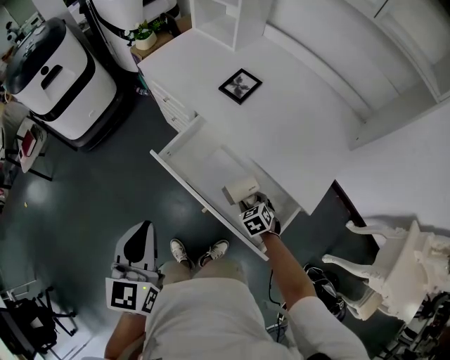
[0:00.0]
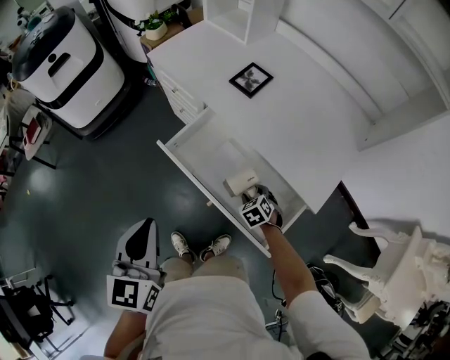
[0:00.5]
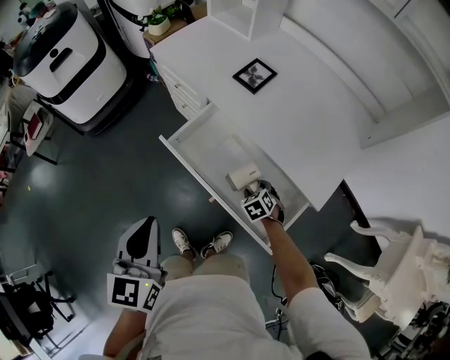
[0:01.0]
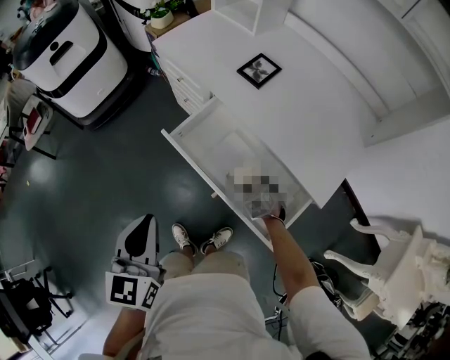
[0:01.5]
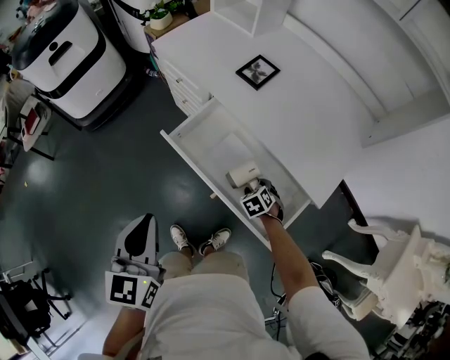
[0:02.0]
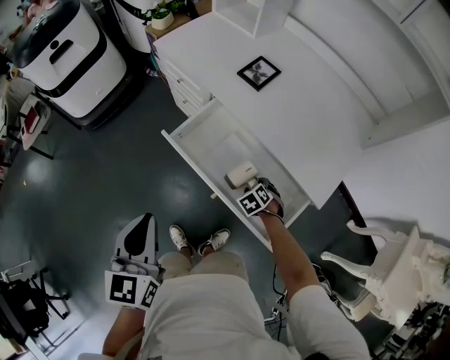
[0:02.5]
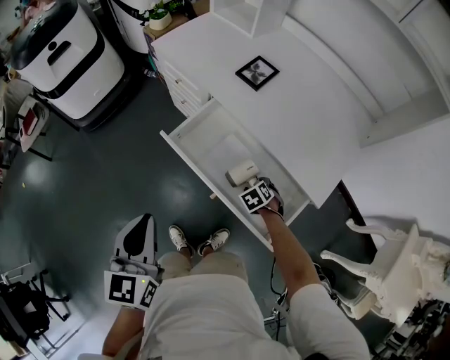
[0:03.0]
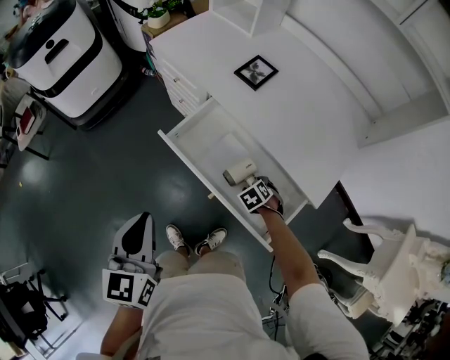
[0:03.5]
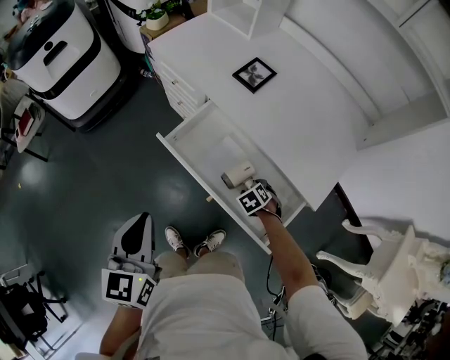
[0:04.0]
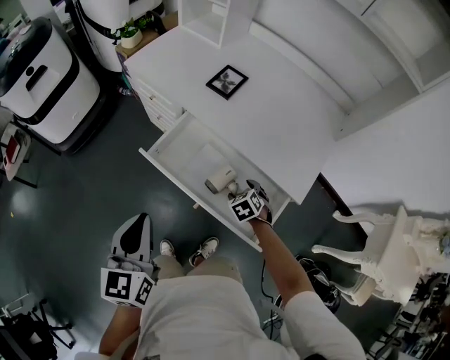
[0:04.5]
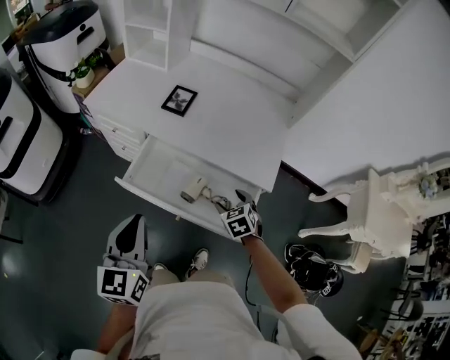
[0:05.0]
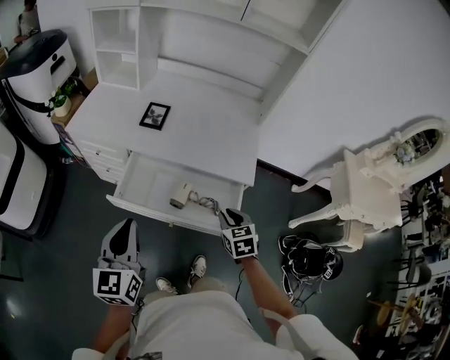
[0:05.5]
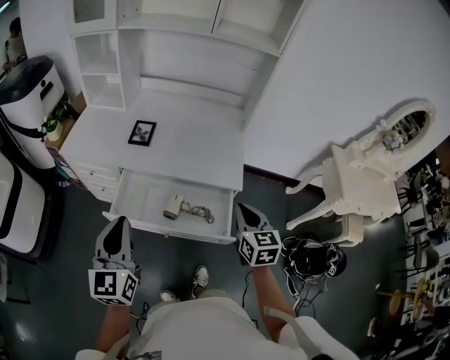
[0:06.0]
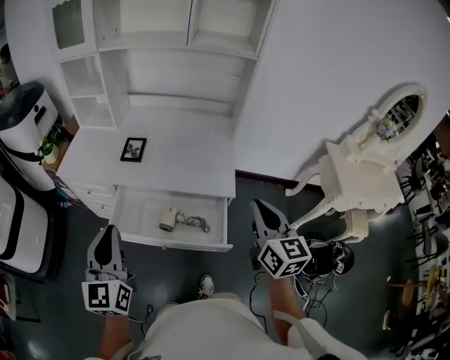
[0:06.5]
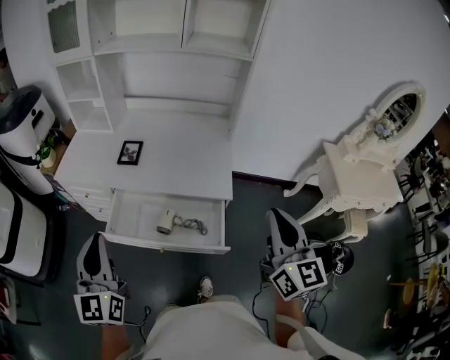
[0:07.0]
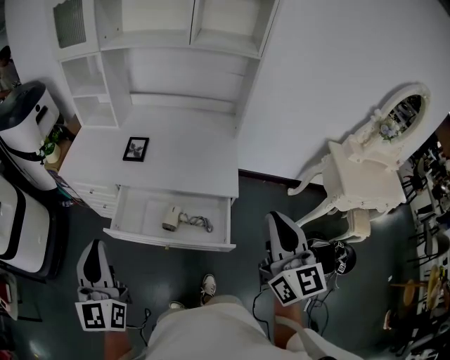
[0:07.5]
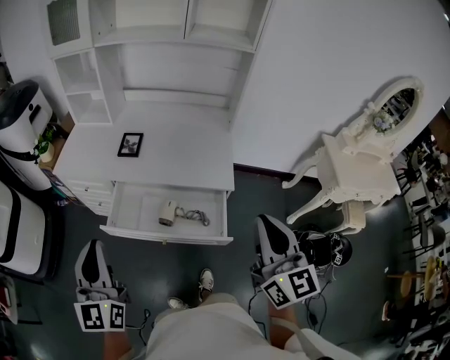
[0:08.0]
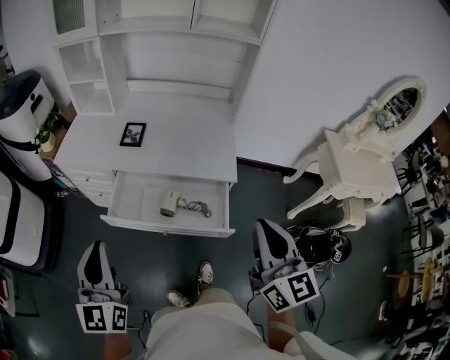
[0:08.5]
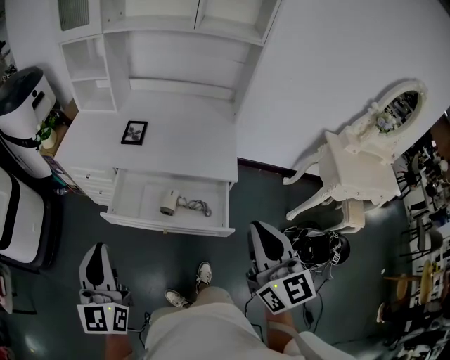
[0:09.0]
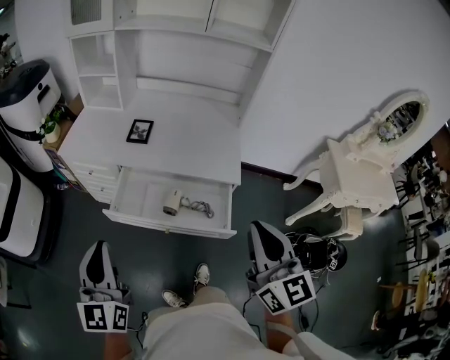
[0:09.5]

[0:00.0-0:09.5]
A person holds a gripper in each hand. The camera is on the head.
0:00.0 to 0:04.0: The grippers move only a little.
0:04.0 to 0:05.5: The left gripper moves roughly 5 cm, and turns by roughly 30 degrees. Meanwhile the right gripper travels upward by about 25 cm, angles its fingers upward, by about 30 degrees, and closes its fingers.
0:05.5 to 0:07.5: The left gripper travels upward by some 10 cm. Meanwhile the right gripper travels upward by approximately 30 cm, and tips its fingers upward by approximately 50 degrees.
0:07.5 to 0:09.5: The left gripper ends up about 5 cm from where it was. Meanwhile the right gripper moves to the left, some 10 cm.

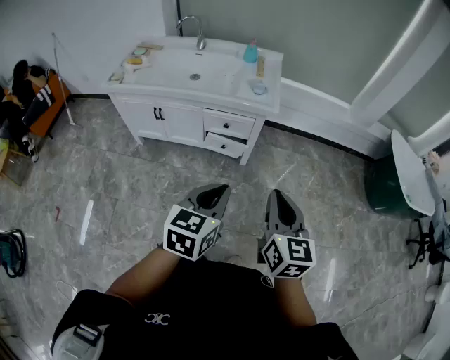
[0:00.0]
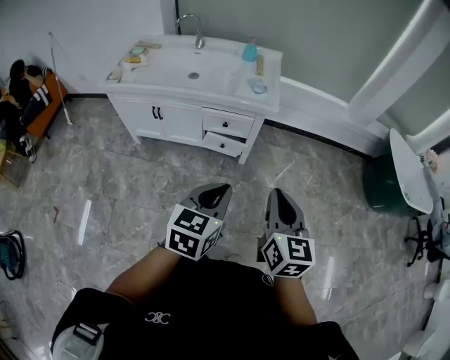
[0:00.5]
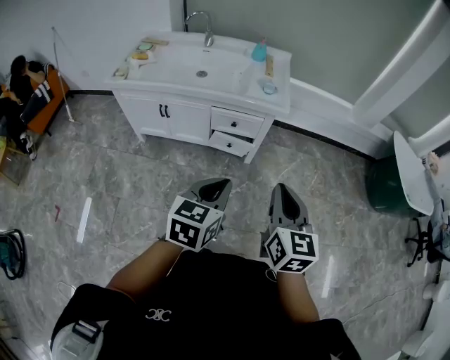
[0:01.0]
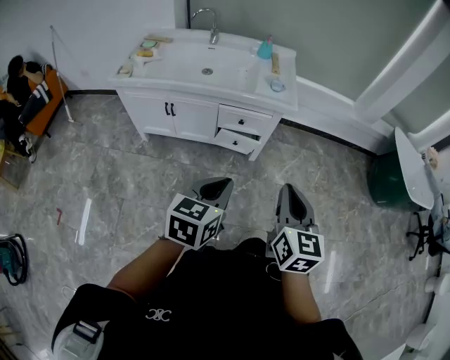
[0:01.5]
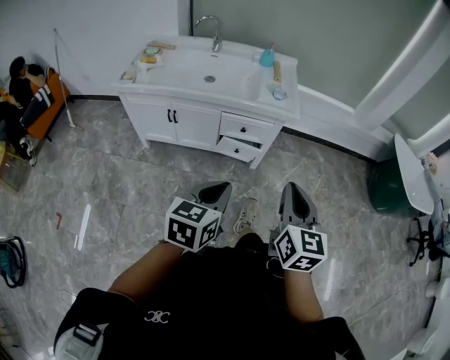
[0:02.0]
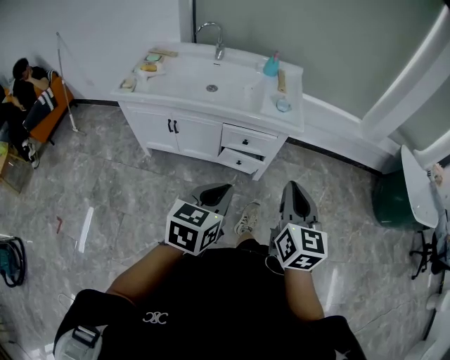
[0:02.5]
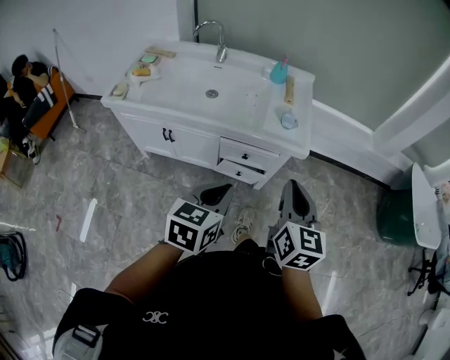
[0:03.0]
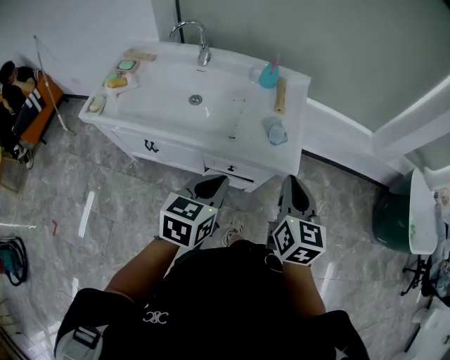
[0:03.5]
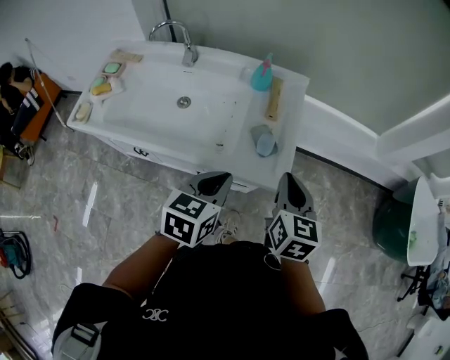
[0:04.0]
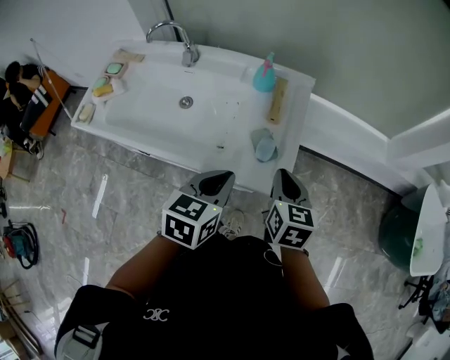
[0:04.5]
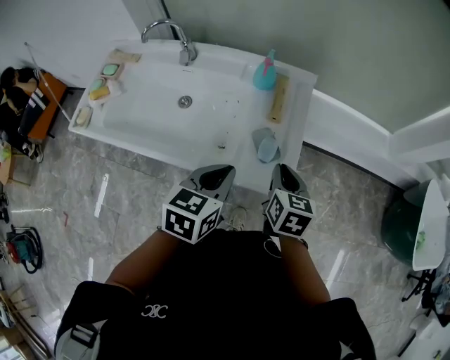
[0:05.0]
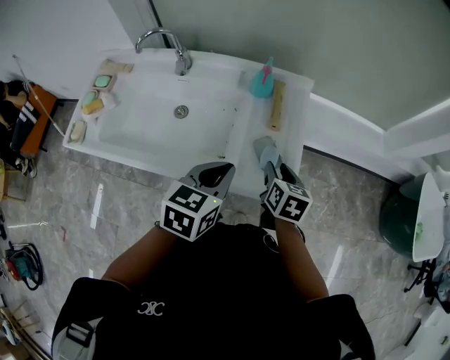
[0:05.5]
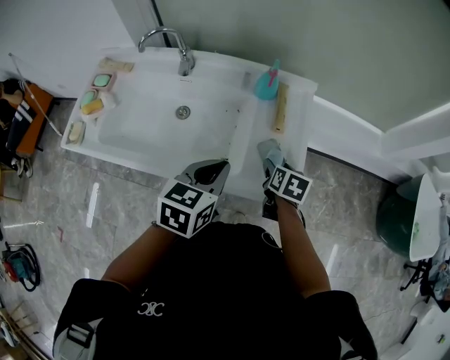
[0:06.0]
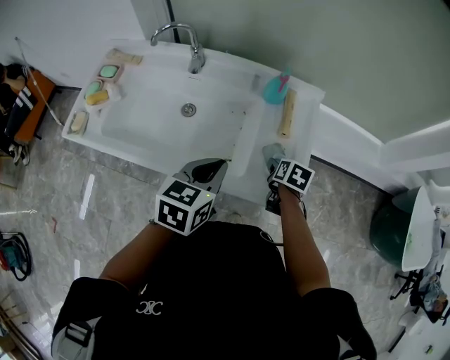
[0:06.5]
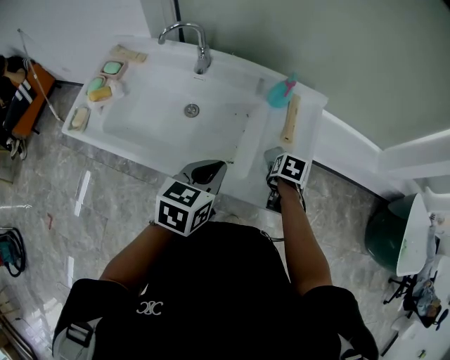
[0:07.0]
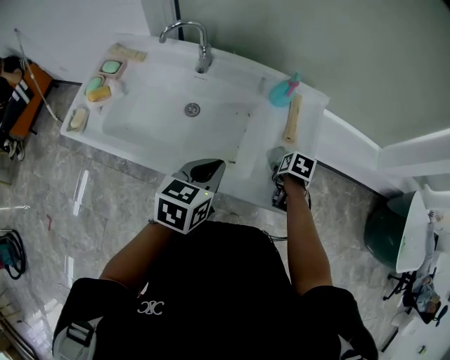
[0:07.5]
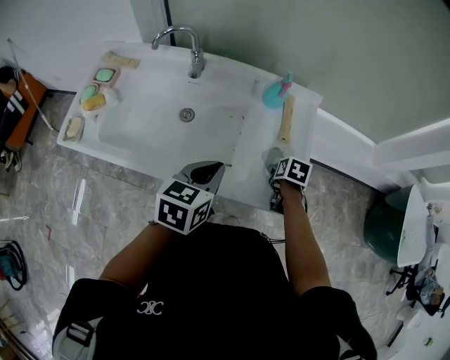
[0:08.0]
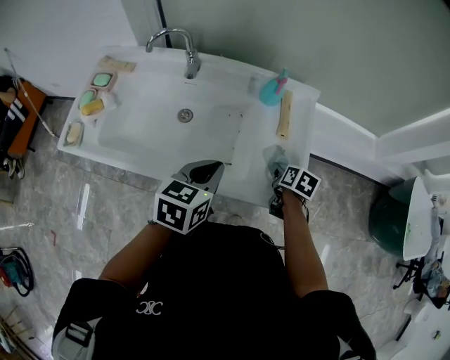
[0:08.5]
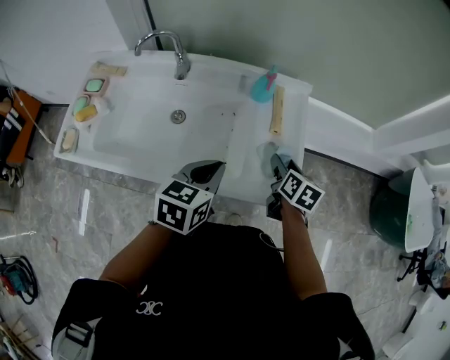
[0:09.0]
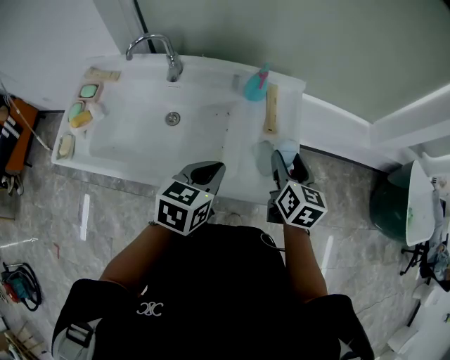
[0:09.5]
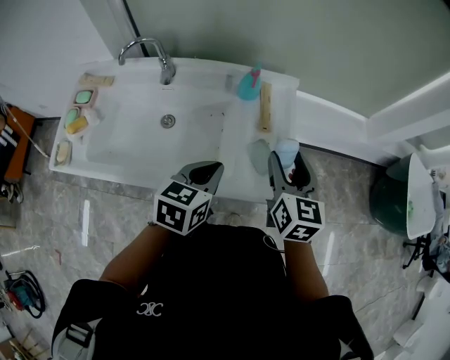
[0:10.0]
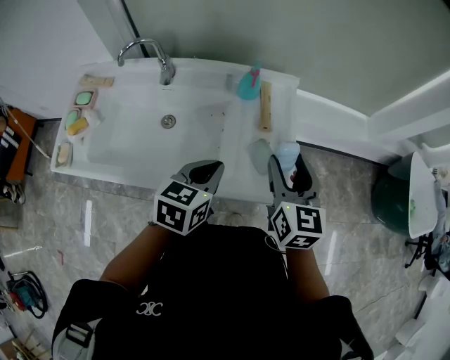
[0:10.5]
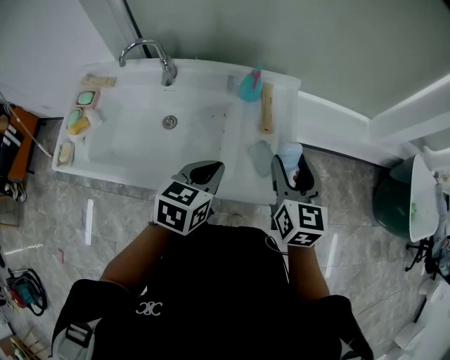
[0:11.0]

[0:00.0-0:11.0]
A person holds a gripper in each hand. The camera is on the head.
0:00.0 to 0:02.0: The grippers both shift to the left by roughly 10 cm.
0:02.0 to 0:03.5: Both grippers travel together forward, roughly 35 cm.
0:03.5 to 0:05.5: The left gripper moves forward, roughly 20 cm, while the right gripper shifts roughly 25 cm forward and downward, rotates some 30 degrees, and opens up.
0:05.5 to 0:07.5: The left gripper shifts roughly 10 cm to the left, while the right gripper shifts about 10 cm downward, tilts its fingers about 30 degrees downward, and opens its fingers.
0:07.5 to 0:09.0: The right gripper moves upward, approximately 10 cm, and points its fingers about 30 degrees further upward.
0:09.0 to 0:11.0: The right gripper goes roughly 15 cm upward, and rotates approximately 30 degrees.

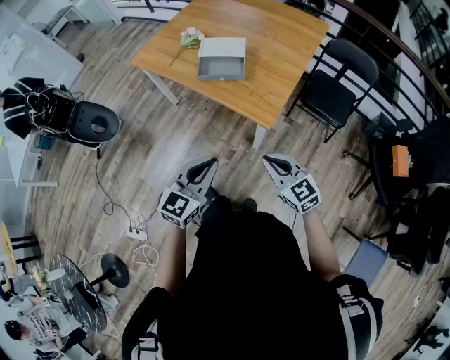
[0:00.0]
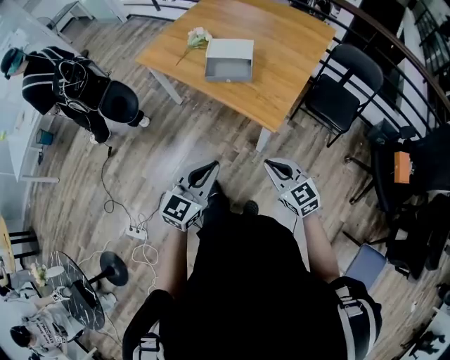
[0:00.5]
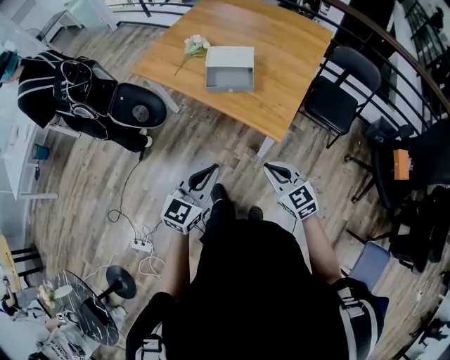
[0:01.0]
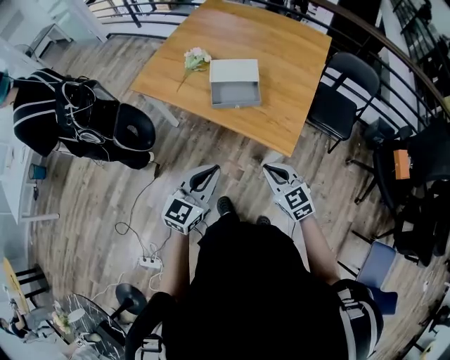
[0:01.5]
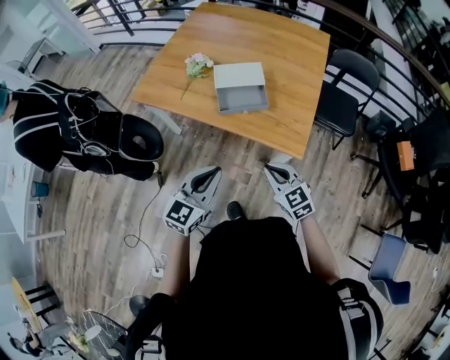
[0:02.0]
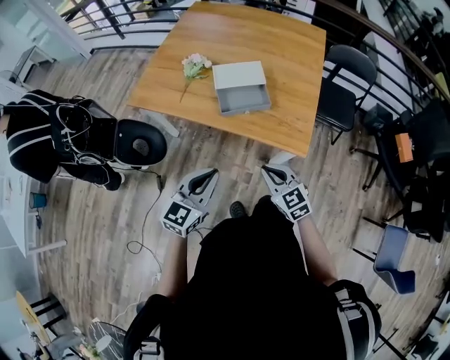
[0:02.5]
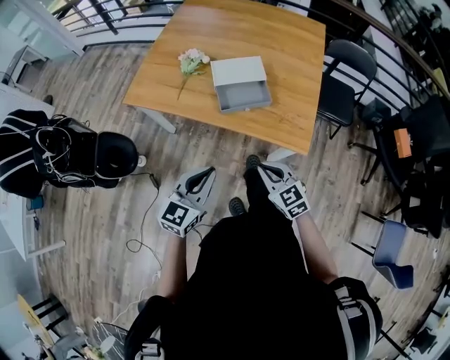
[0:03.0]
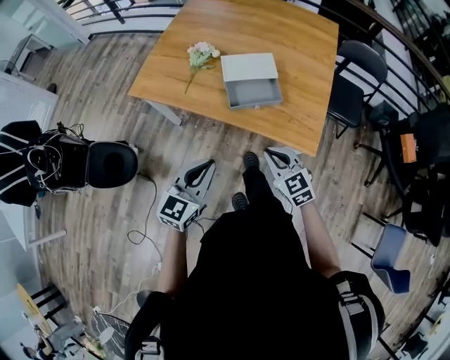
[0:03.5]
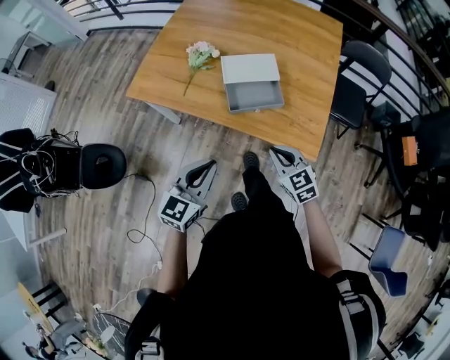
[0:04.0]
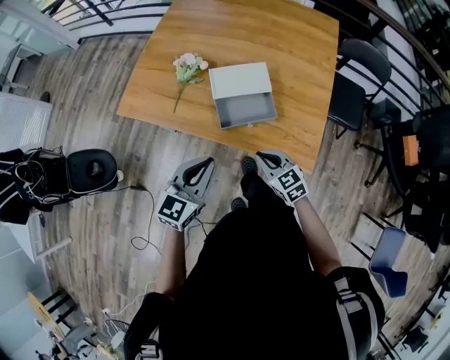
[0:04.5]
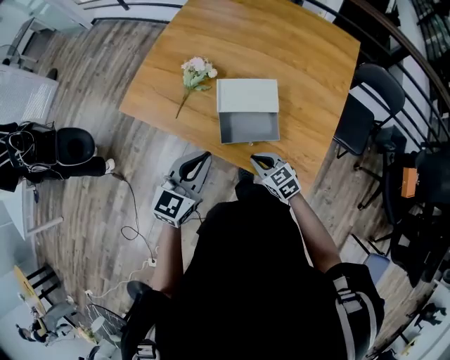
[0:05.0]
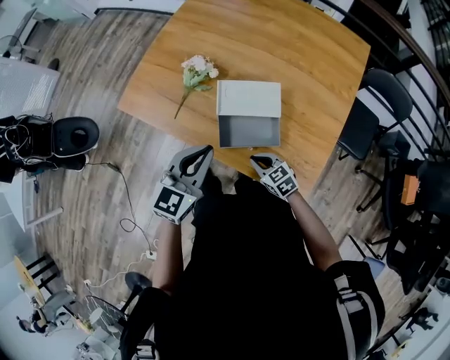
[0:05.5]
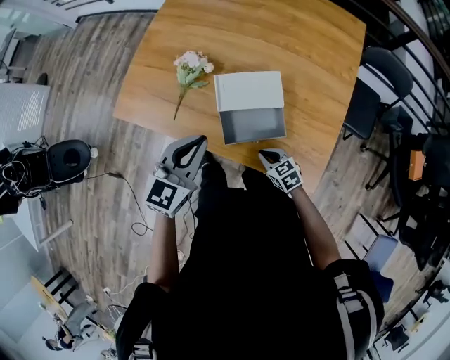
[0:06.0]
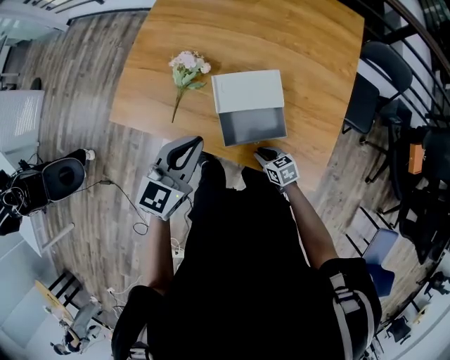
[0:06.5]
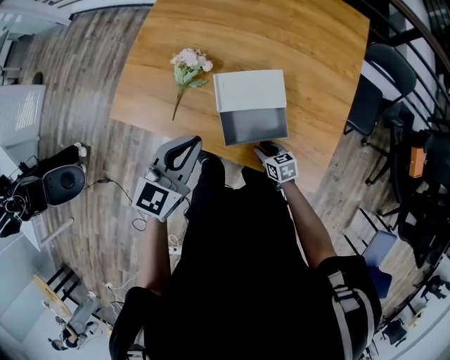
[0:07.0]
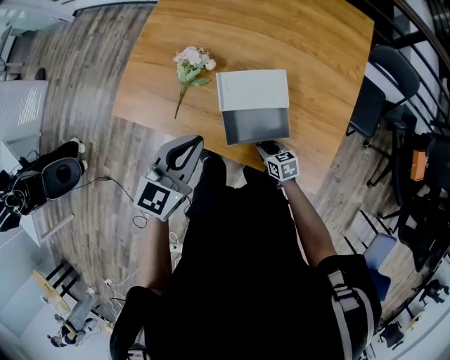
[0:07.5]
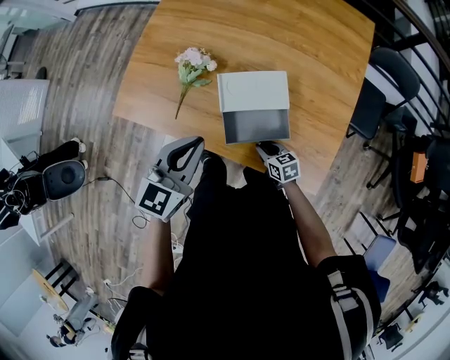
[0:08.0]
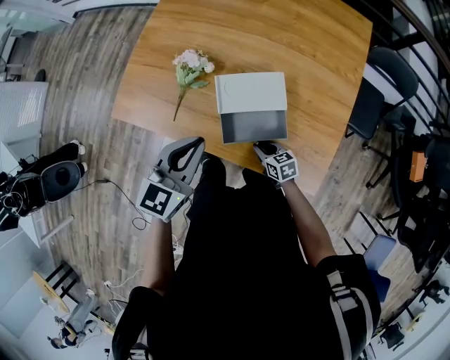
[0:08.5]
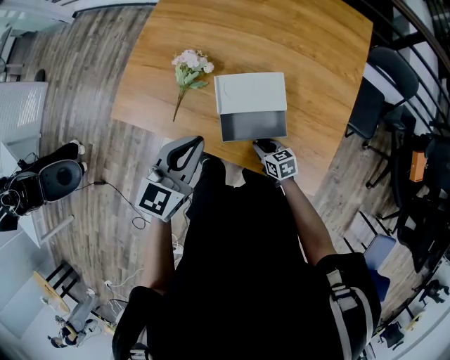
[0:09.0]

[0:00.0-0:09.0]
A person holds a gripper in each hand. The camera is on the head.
0:00.0 to 0:02.0: Both grippers travel together to the left and forward, some 30 cm.
0:02.0 to 0:04.5: The two grippers go approximately 20 cm forward.
0:04.5 to 0:07.0: The right gripper moves downward and forward, roughly 25 cm, turns by about 30 degrees, and opens. Meanwhile the left gripper travels forward by about 25 cm.
0:07.0 to 0:09.0: The grippers stay close to where they were, moving slightly.
